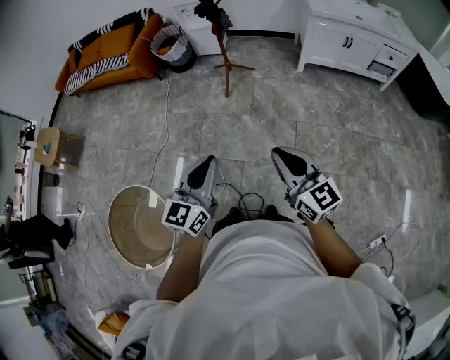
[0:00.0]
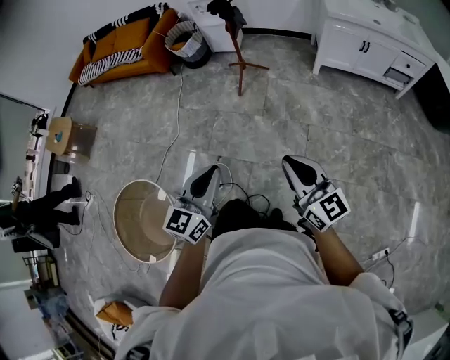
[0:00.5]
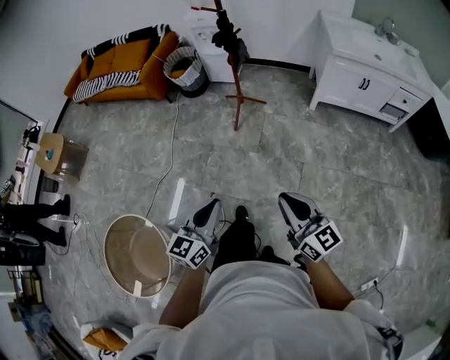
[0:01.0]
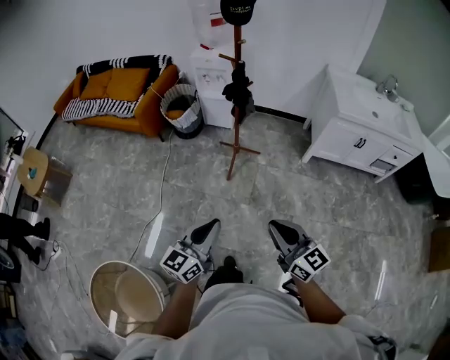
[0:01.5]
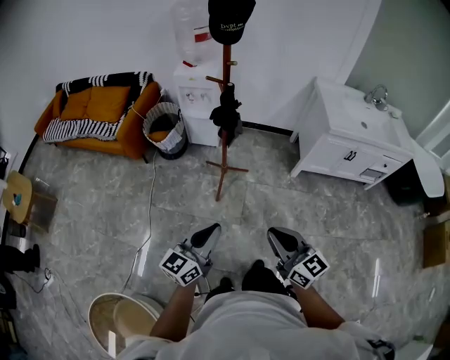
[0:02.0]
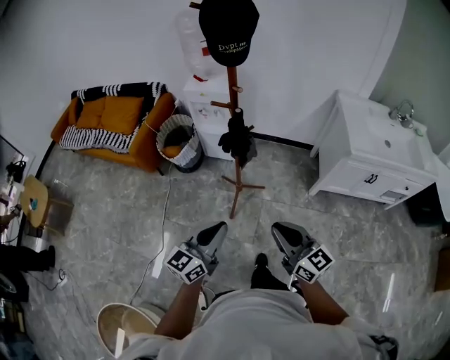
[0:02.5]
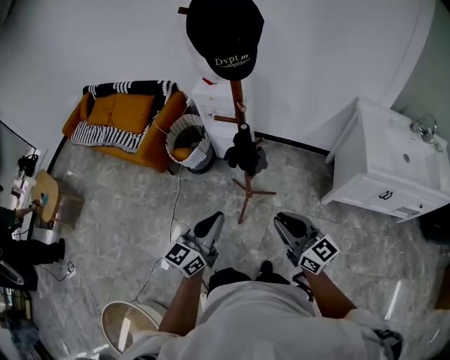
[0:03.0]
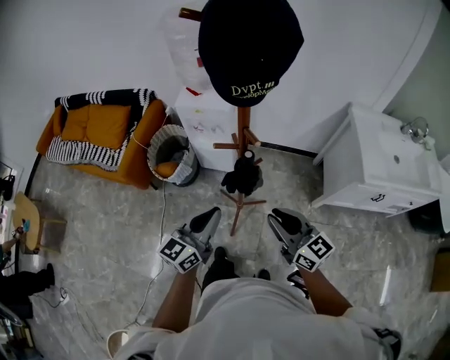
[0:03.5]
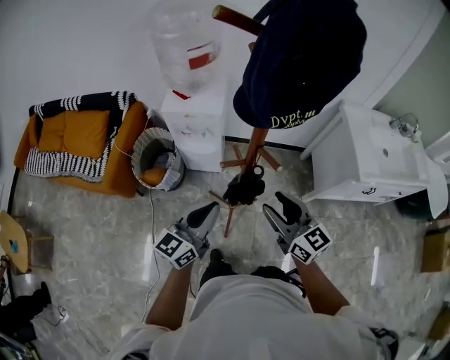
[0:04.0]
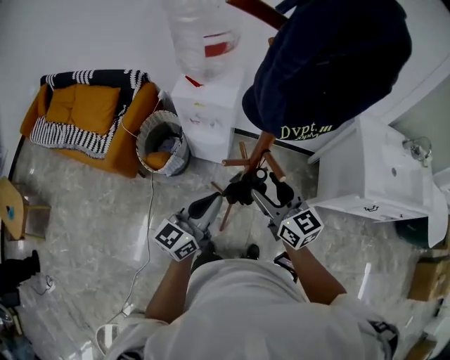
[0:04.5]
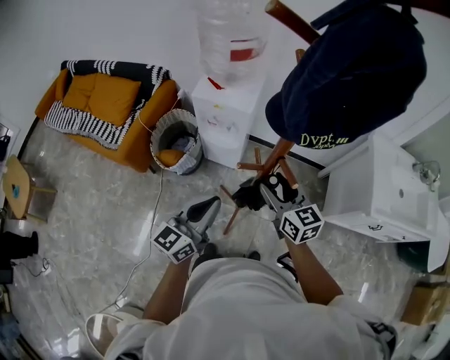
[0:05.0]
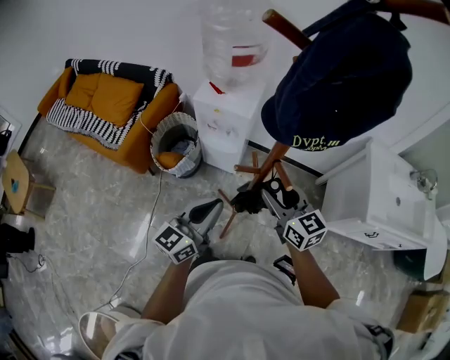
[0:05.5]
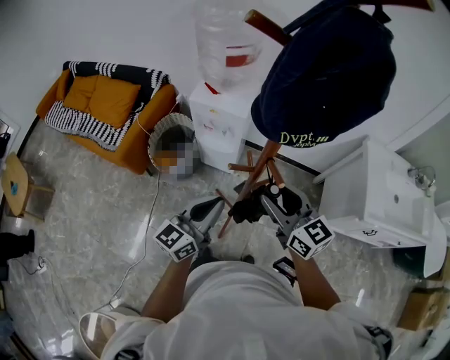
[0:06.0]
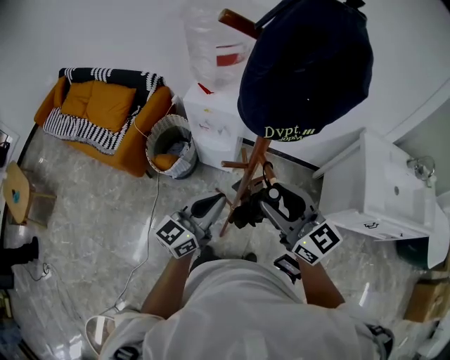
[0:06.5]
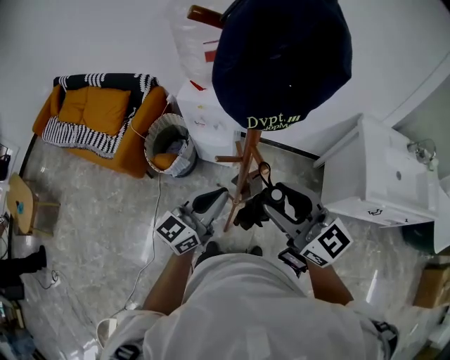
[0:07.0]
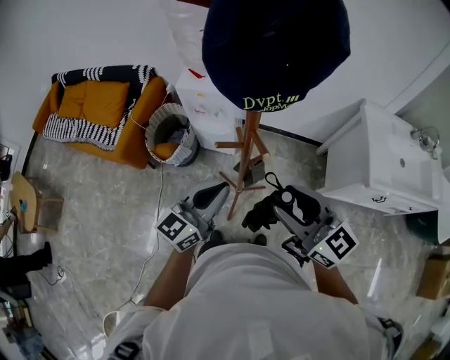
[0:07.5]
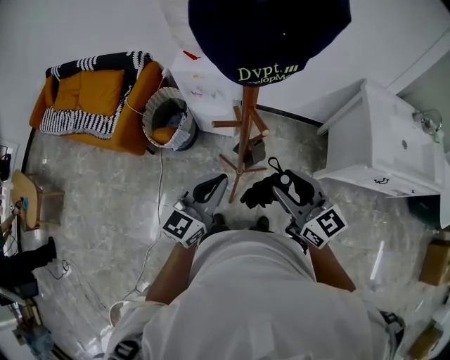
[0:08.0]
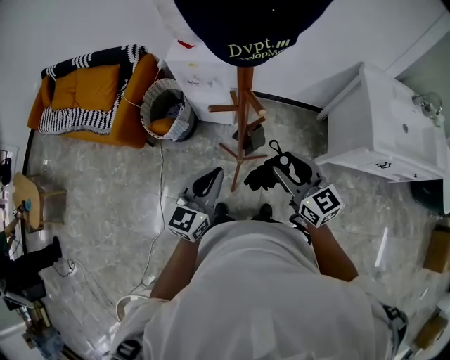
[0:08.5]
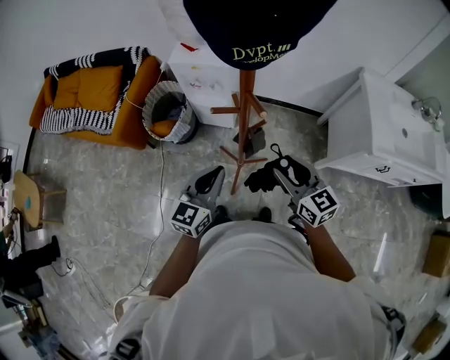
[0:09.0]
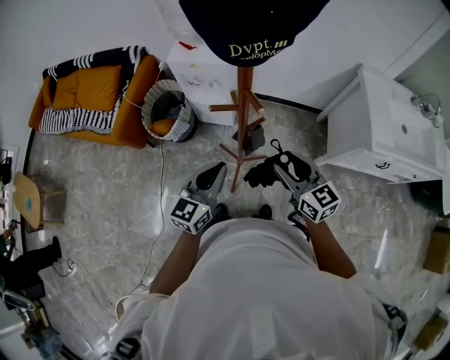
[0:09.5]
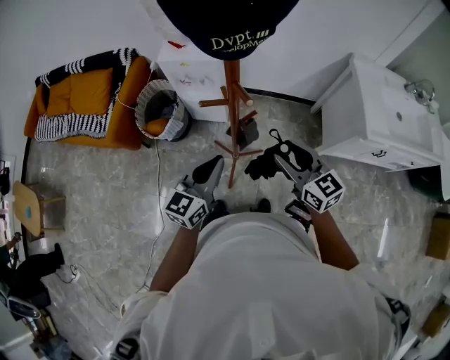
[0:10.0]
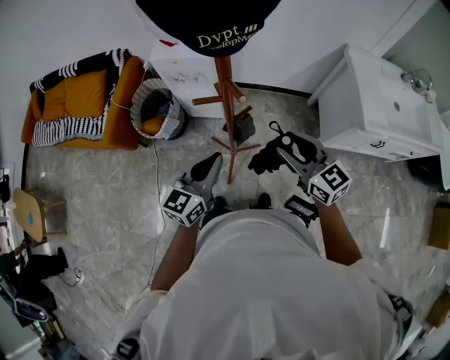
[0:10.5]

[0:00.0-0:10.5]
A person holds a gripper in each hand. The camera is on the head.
0:00.0 to 0:02.0: Both grippers travel together forward, roughly 40 cm.
0:02.0 to 0:04.0: Both grippers are carried forward, some 50 cm. The right gripper opens its fingers.
0:04.0 to 0:06.5: The right gripper is displaced upward by some 10 cm.
0:06.5 to 0:08.5: The left gripper shifts some 10 cm backward and downward. The right gripper moves downward and to the right, some 15 cm.
0:08.5 to 0:10.5: The grippers make only small movements.

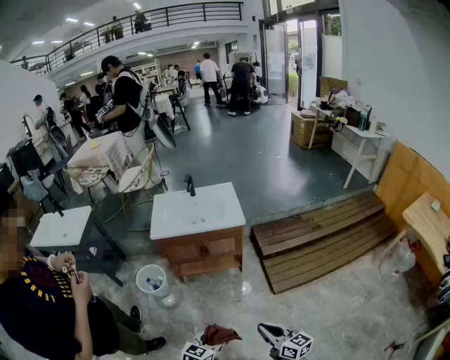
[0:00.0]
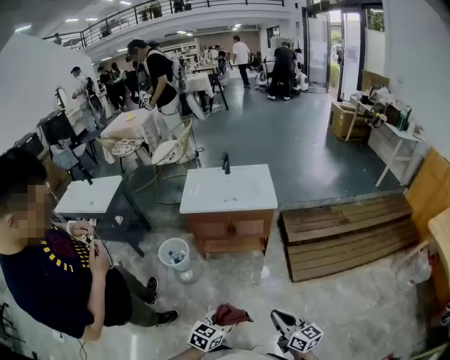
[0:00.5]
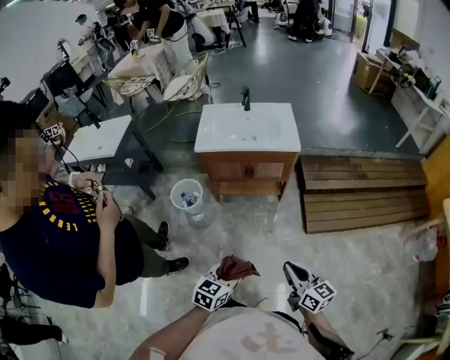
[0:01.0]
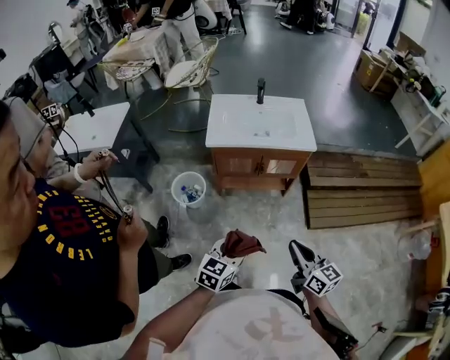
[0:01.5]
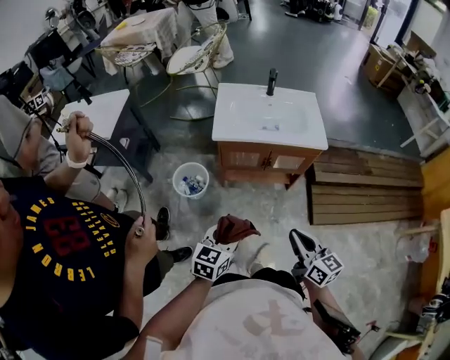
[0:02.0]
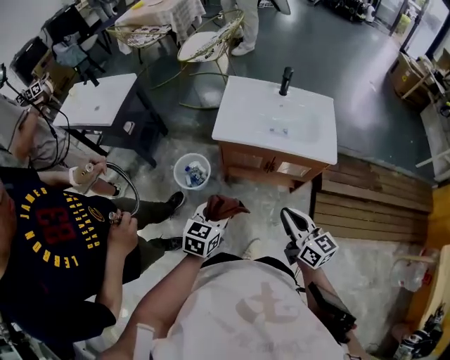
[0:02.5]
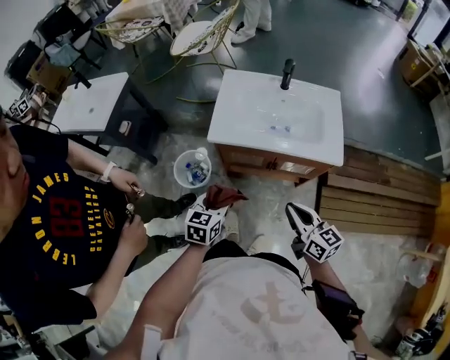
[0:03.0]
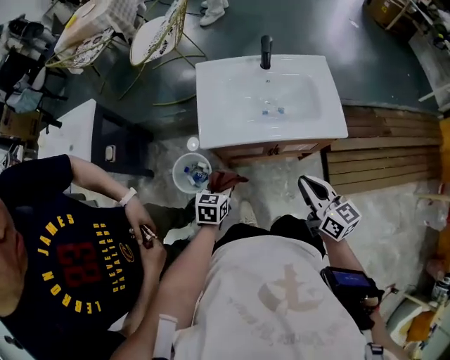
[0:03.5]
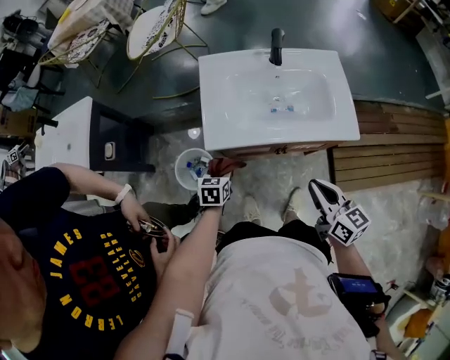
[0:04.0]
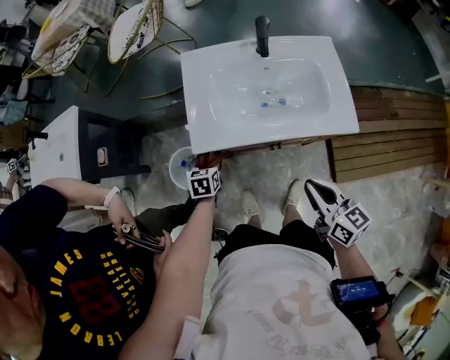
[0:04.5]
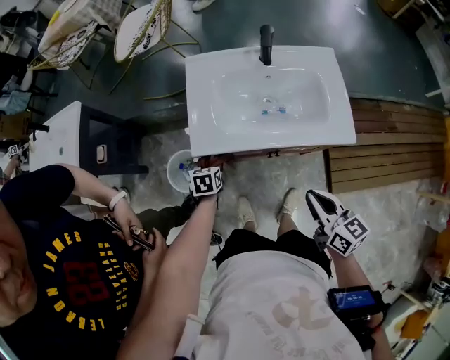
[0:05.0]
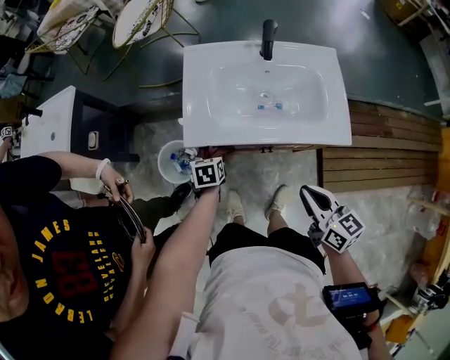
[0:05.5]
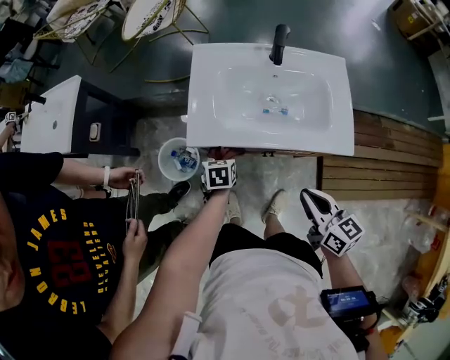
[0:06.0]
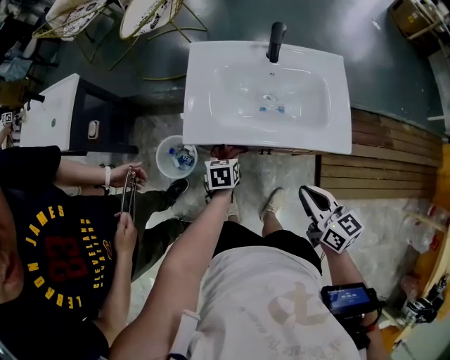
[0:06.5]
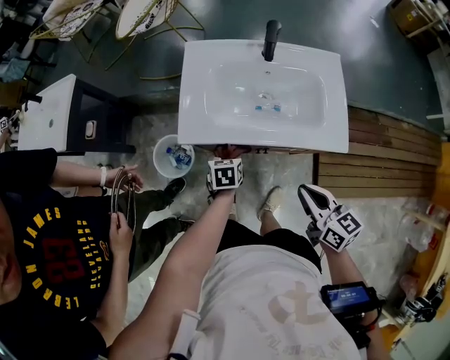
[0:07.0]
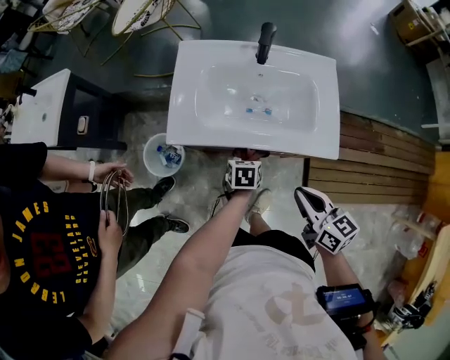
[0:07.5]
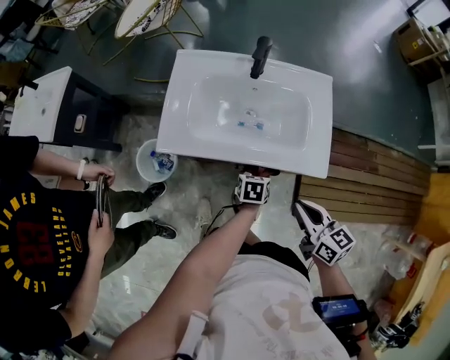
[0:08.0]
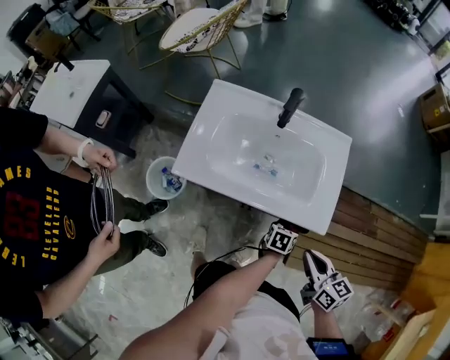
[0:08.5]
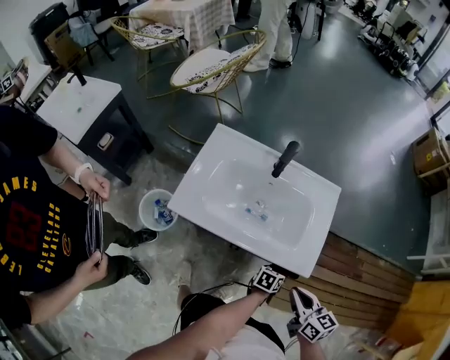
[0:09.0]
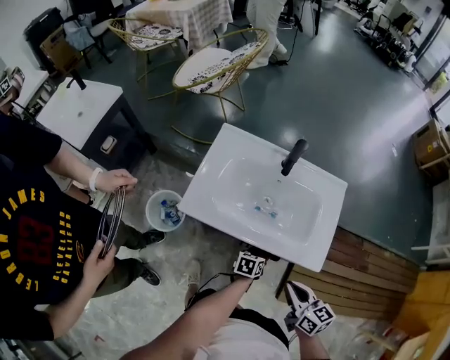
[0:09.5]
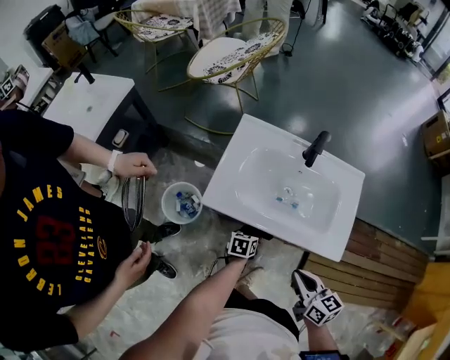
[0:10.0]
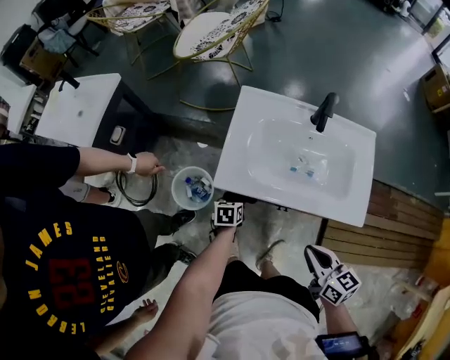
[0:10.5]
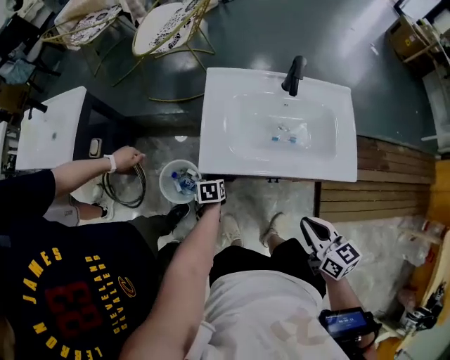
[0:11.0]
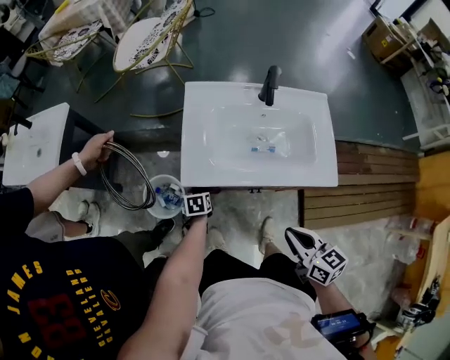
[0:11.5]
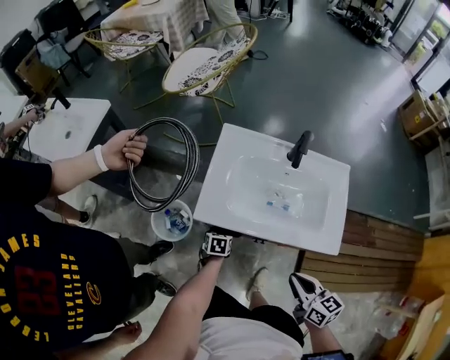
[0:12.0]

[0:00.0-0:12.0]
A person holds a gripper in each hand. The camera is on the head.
0:00.0 to 0:02.0: The left gripper goes some 30 cm to the left and forward. Meanwhile the right gripper is displaced forward and to the left by some 25 cm.
0:02.0 to 0:04.0: The right gripper travels forward by some 30 cm, while the left gripper is displaced forward and downward by about 40 cm, and turns by approximately 30 degrees.
0:04.0 to 0:06.0: The left gripper heads to the right, covering about 5 cm.
0:06.0 to 0:08.0: The right gripper is displaced to the right by some 10 cm. The left gripper moves to the right, about 25 cm.
0:08.0 to 0:10.0: The left gripper is displaced to the left by roughly 15 cm; the right gripper travels to the left by roughly 5 cm.
0:10.0 to 0:12.0: The left gripper is displaced to the left by some 10 cm.

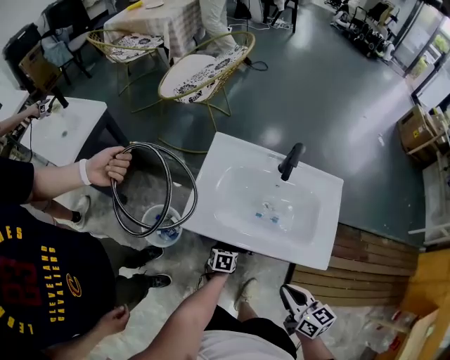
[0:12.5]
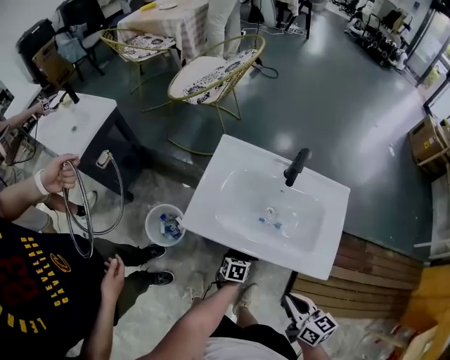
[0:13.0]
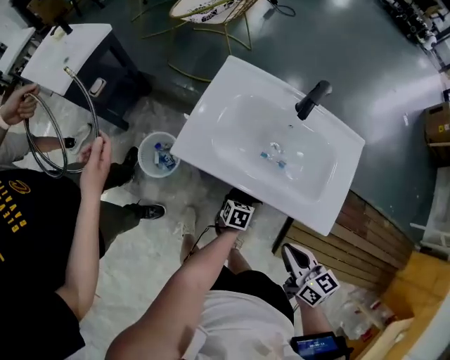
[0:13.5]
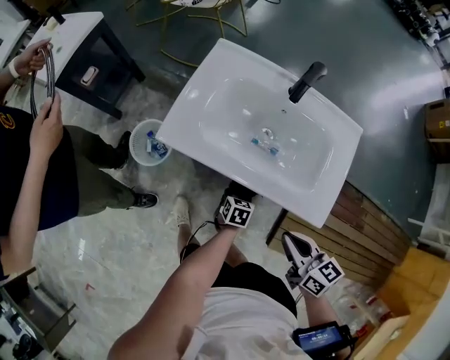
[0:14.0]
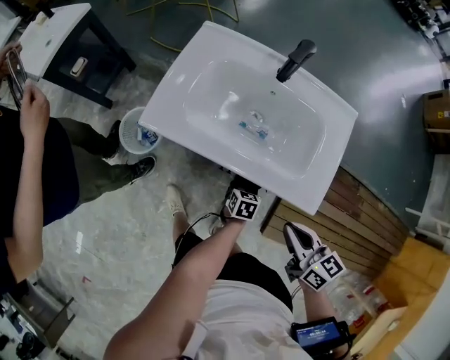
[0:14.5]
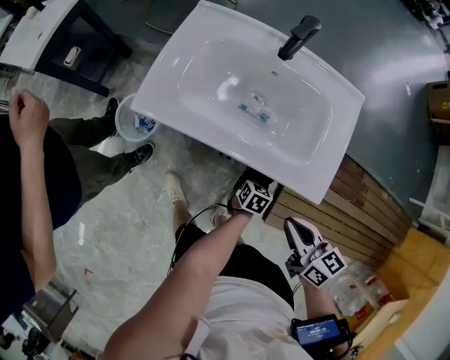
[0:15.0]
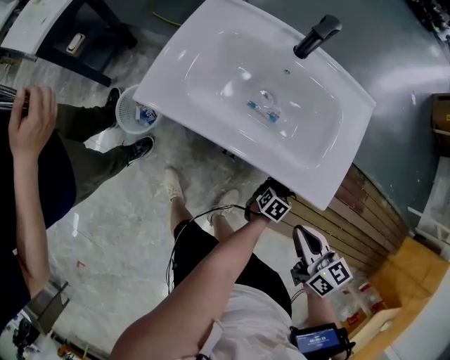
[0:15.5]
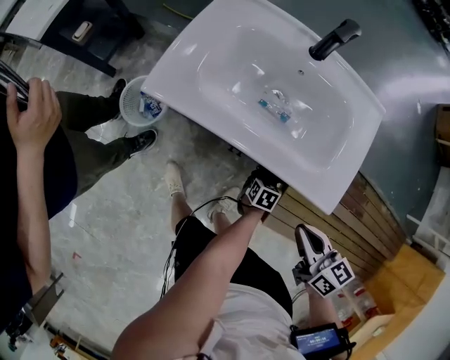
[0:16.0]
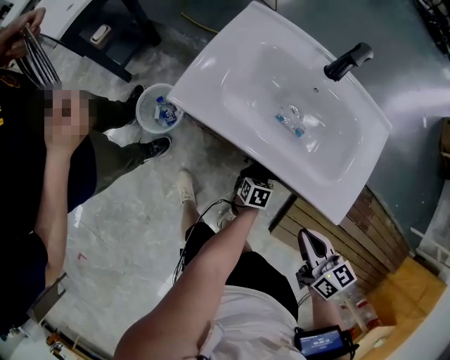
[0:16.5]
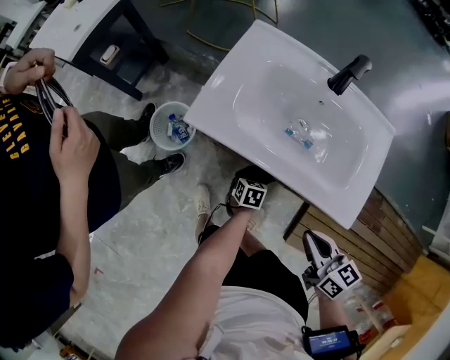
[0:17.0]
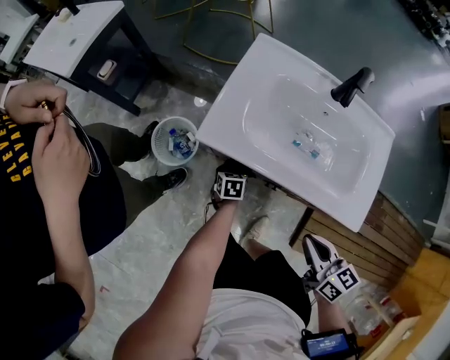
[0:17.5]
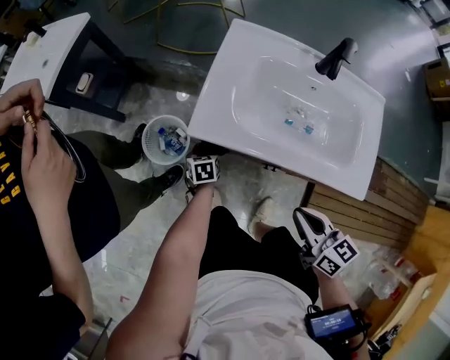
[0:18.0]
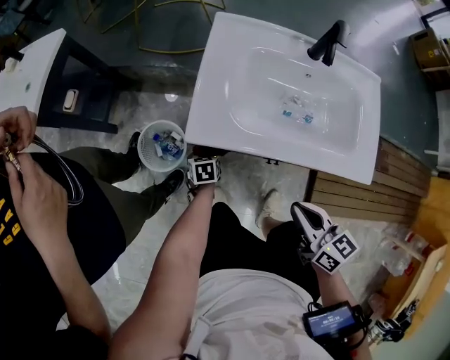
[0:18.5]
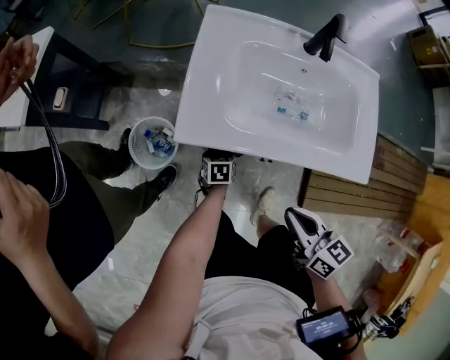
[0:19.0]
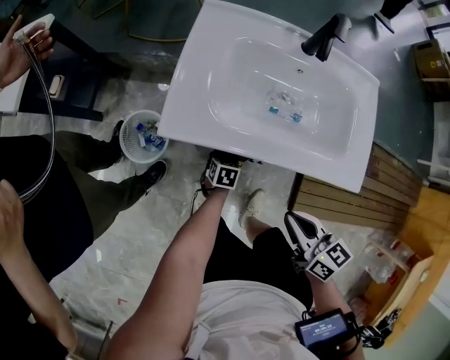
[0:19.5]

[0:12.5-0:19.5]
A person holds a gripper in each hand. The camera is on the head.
0:12.5 to 0:14.5: The right gripper goes about 10 cm to the right; the left gripper goes about 20 cm to the right.
0:14.5 to 0:16.0: The left gripper heads downward and to the right, covering some 10 cm.
0:16.0 to 0:17.5: The left gripper heads to the left and forward, covering approximately 30 cm. The right gripper heads to the left, covering roughly 10 cm.
0:17.5 to 0:19.5: The left gripper is displaced to the right by about 5 cm, and turns by roughly 20 degrees.
